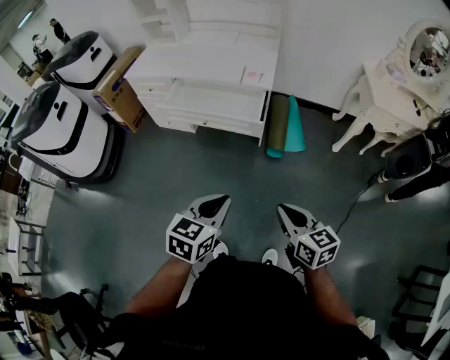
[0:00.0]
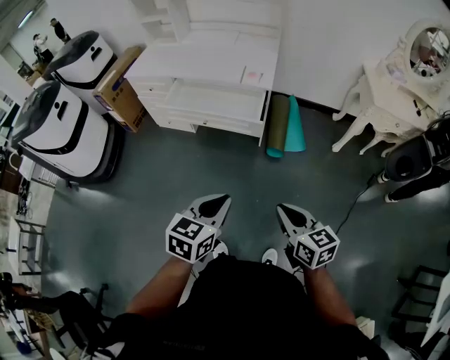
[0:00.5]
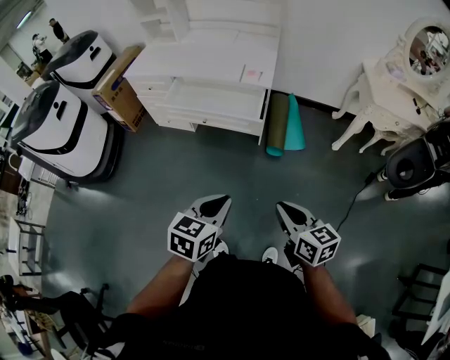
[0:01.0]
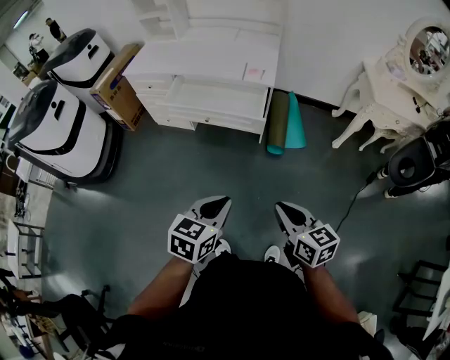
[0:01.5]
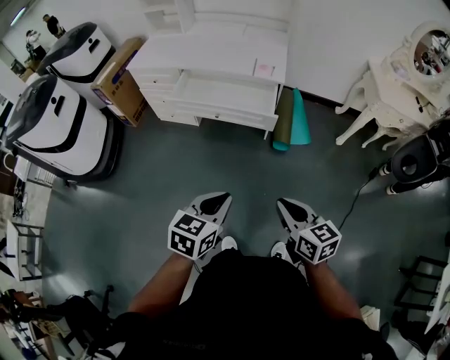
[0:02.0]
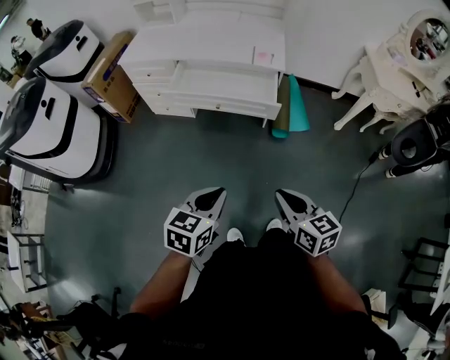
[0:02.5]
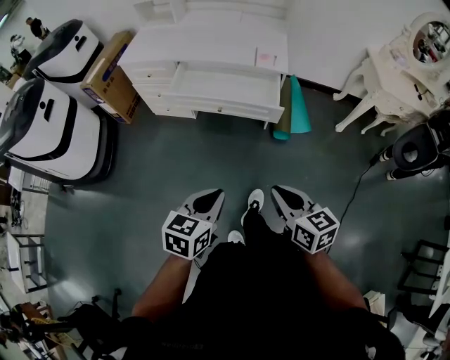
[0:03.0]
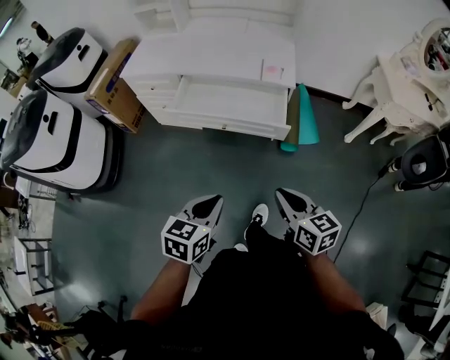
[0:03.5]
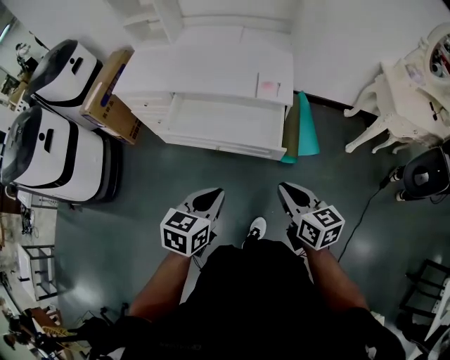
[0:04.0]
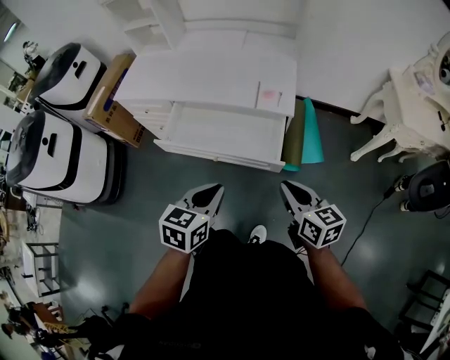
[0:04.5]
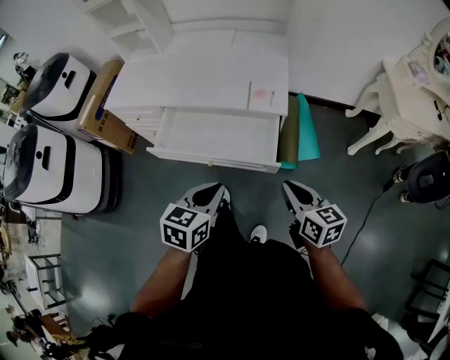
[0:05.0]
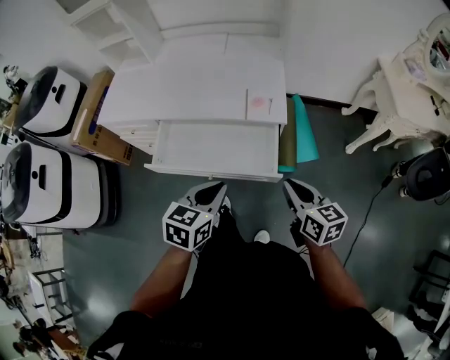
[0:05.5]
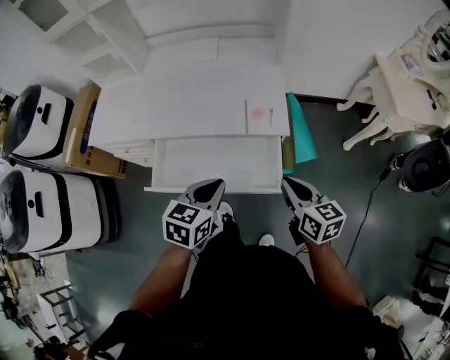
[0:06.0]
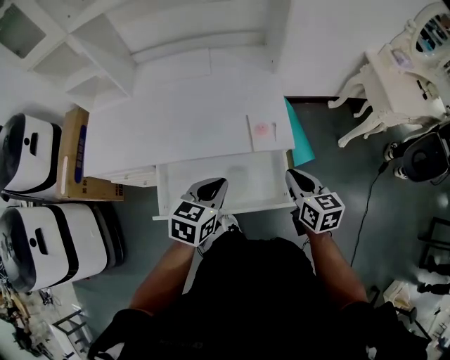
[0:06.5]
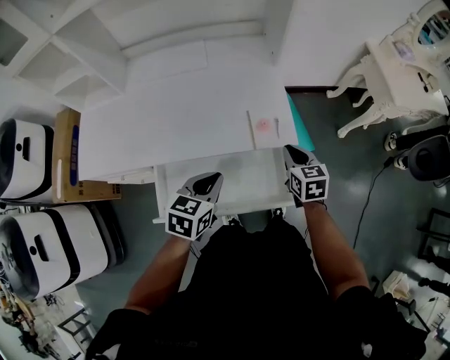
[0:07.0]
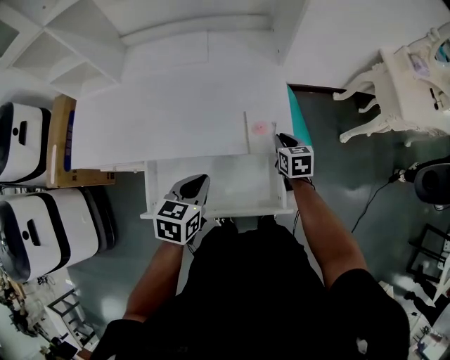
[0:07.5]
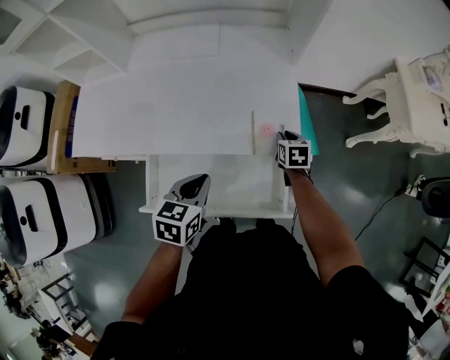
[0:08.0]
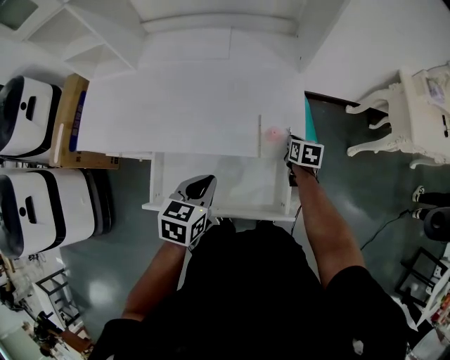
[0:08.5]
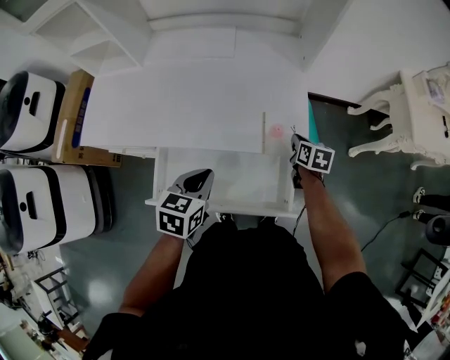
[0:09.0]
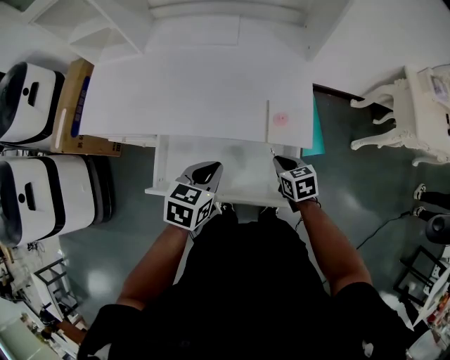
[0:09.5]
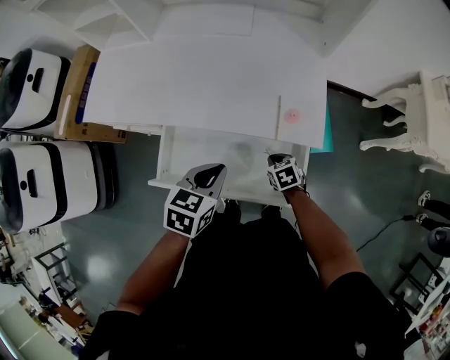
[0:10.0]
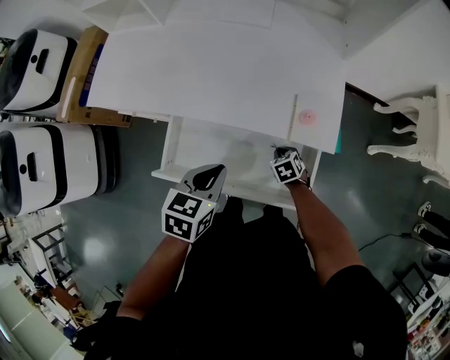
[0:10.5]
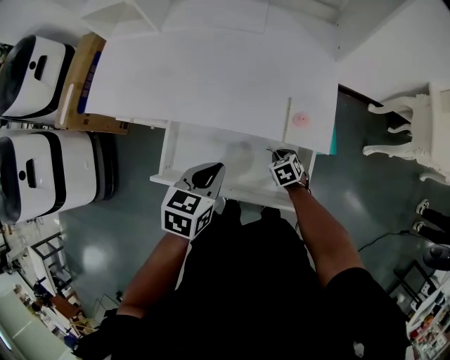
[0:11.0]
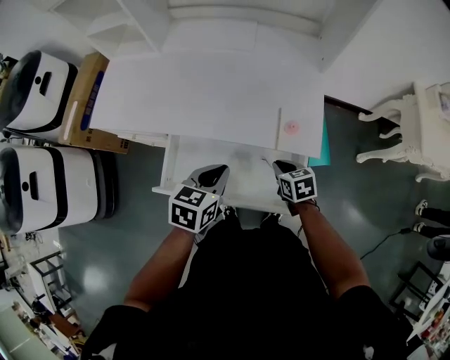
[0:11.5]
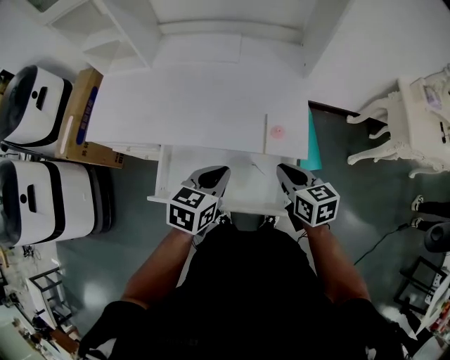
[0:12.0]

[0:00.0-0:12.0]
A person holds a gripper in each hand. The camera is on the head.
0:00.0 to 0:02.0: The grippers both shift to the left by roughly 10 cm.
0:02.0 to 0:04.0: Both grippers travel together forward, approximately 25 cm.
0:04.0 to 0:06.0: Both grippers move forward, about 25 cm.
0:06.0 to 0:08.0: The right gripper heads forward and downward, covering some 35 cm, and changes its angle by about 30 degrees. The left gripper goes some 15 cm forward, to the left and downward.
0:08.0 to 0:10.0: The right gripper shifts about 20 cm backward, to the left and downward, and changes its angle by about 30 degrees.
0:10.0 to 0:12.0: The right gripper travels upward by about 25 cm, and swivels some 30 degrees.

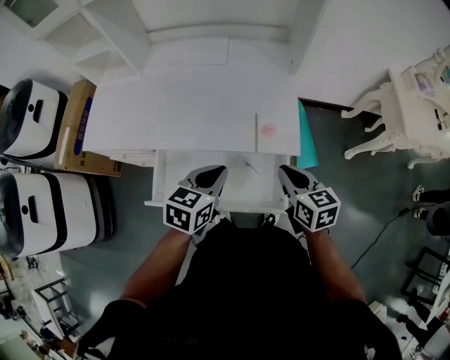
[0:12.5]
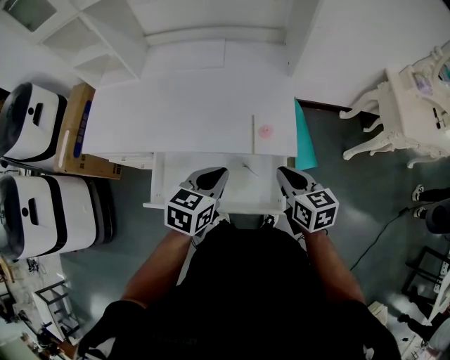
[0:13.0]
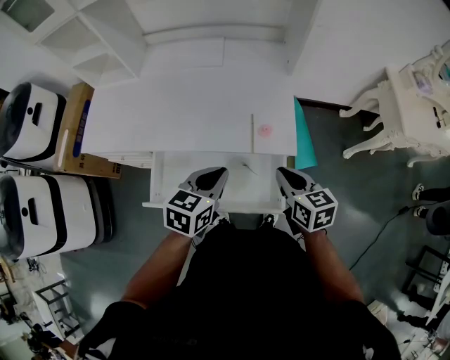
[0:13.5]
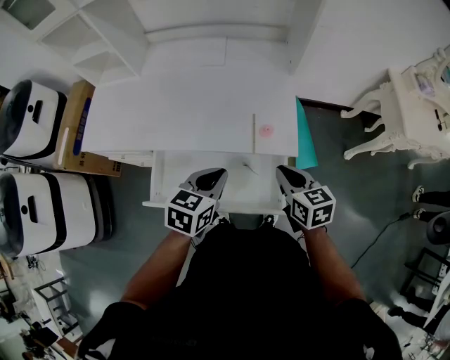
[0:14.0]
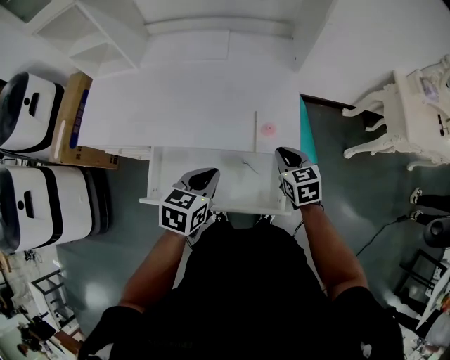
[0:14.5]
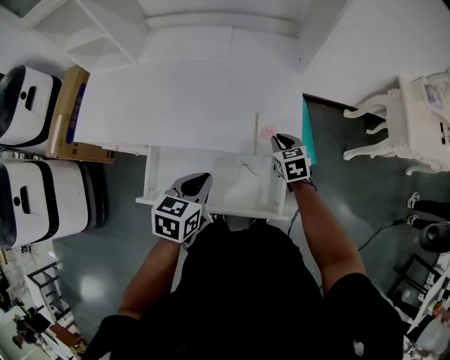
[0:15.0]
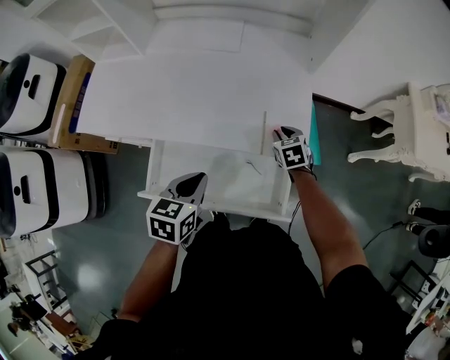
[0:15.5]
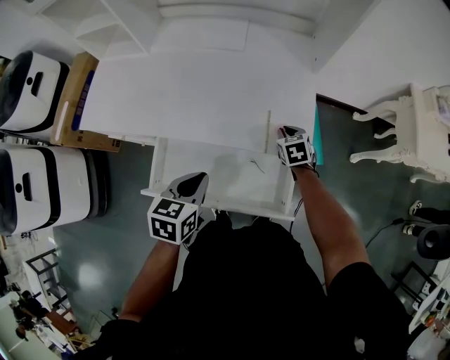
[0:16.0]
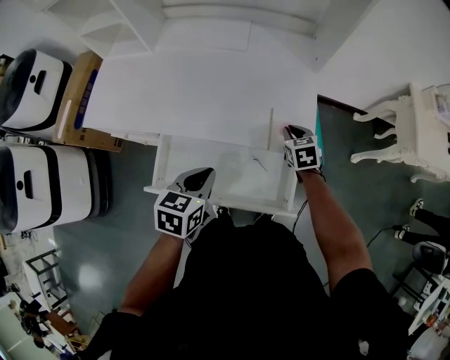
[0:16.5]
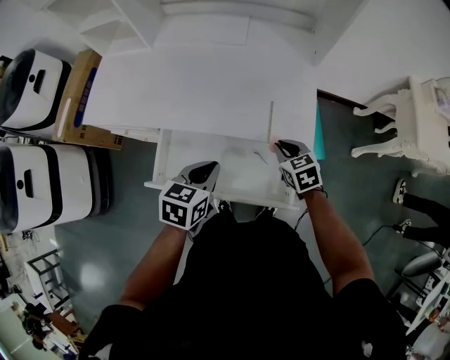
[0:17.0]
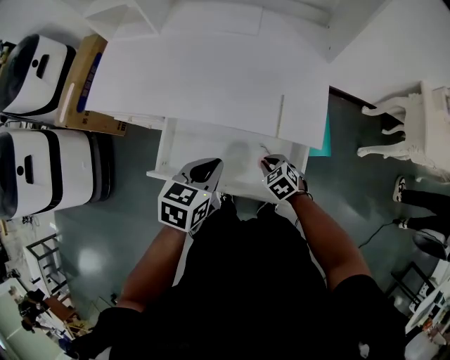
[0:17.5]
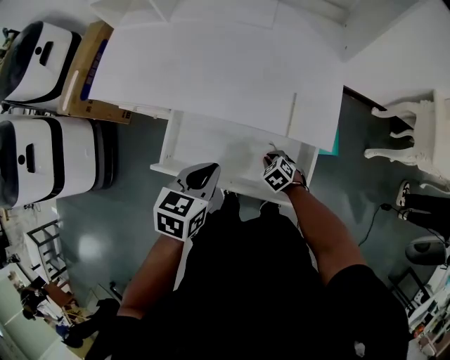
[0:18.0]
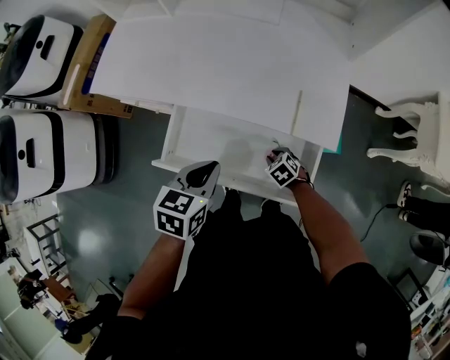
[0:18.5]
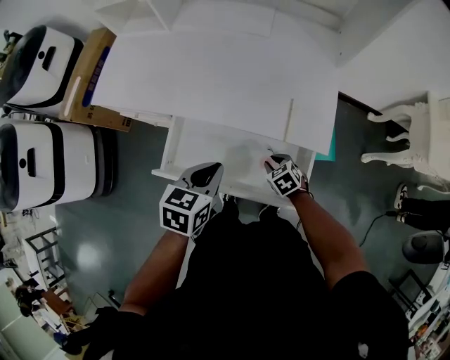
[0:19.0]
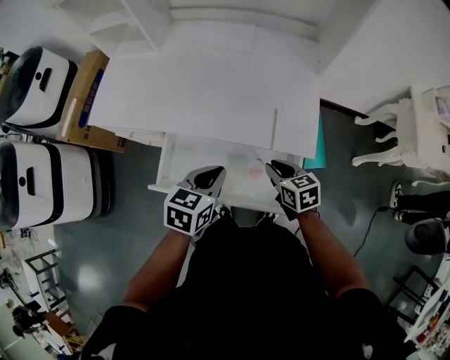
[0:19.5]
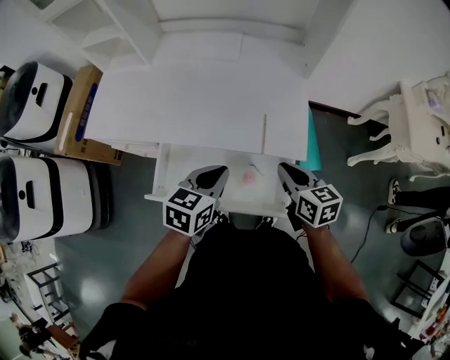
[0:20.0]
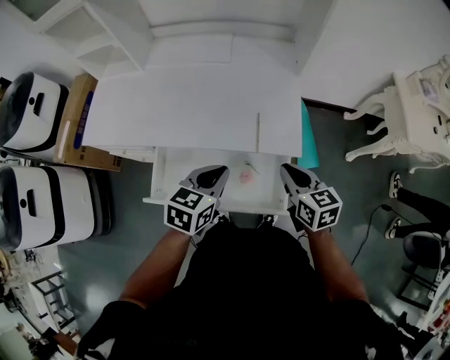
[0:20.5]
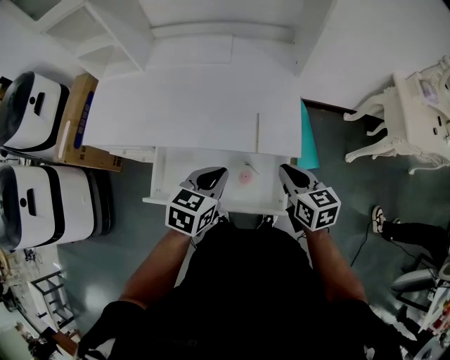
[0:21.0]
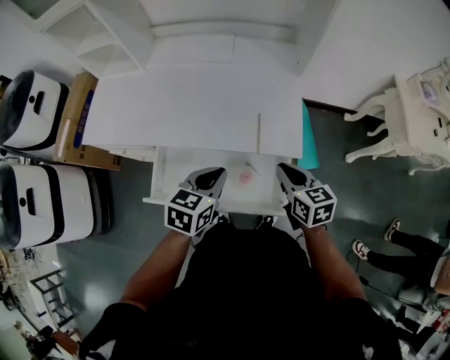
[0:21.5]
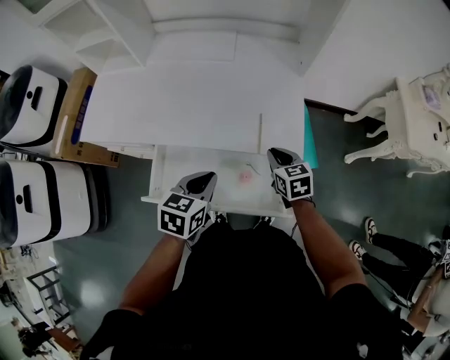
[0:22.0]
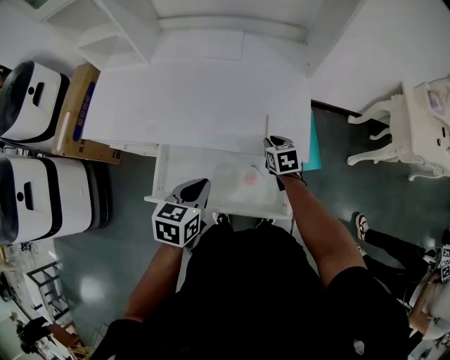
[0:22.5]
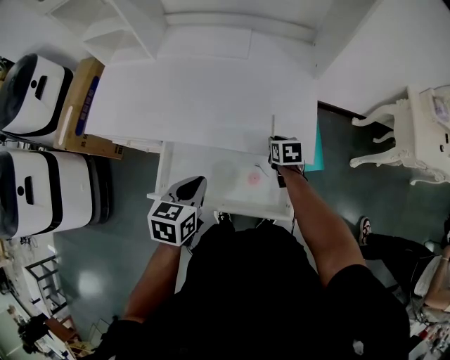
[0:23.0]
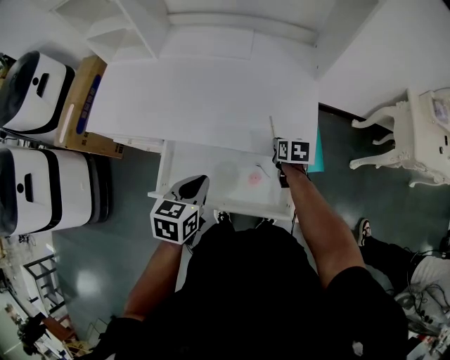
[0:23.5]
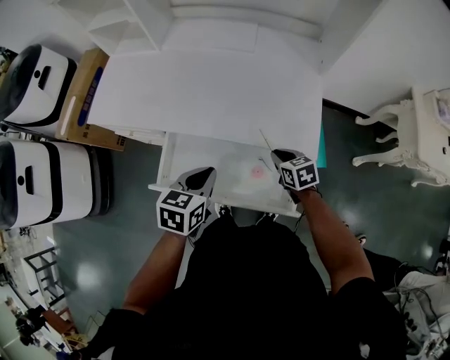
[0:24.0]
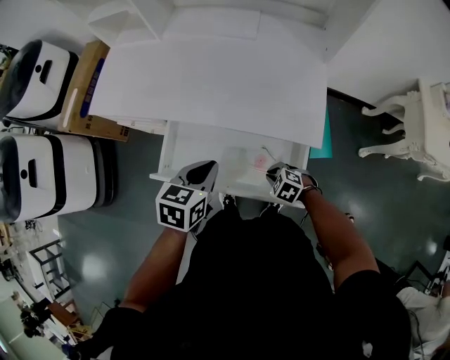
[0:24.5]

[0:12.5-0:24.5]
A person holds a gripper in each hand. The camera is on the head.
0:12.5 to 0:14.5: The right gripper travels forward and downward by about 10 cm.
0:14.5 to 0:16.5: The right gripper goes about 10 cm forward and downward.
0:16.5 to 0:18.5: The right gripper heads downward, backward and to the left, covering some 25 cm, and swivels approximately 40 degrees.
0:18.5 to 0:20.5: The right gripper moves upward, approximately 30 cm, and points its fingers about 40 degrees further upward. The left gripper is displaced to the right by roughly 10 cm.
0:20.5 to 0:22.5: The left gripper moves to the left, some 5 cm. Meanwhile the right gripper goes approximately 20 cm downward and forward, and rotates approximately 20 degrees.
0:22.5 to 0:24.5: The right gripper changes place by roughly 20 cm, and twists approximately 50 degrees counterclockwise, seen from behind.

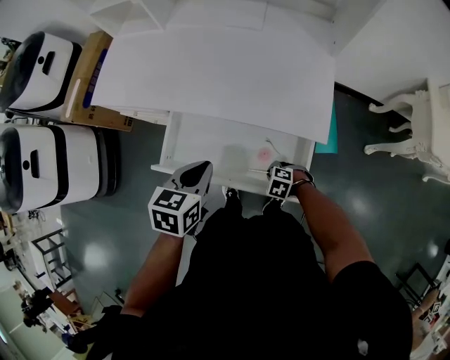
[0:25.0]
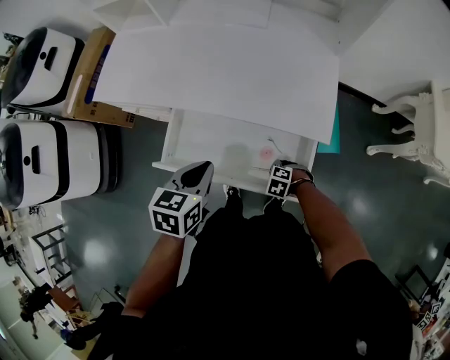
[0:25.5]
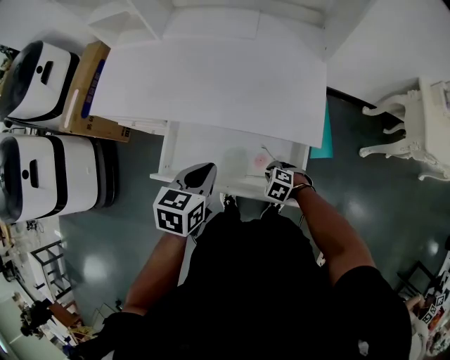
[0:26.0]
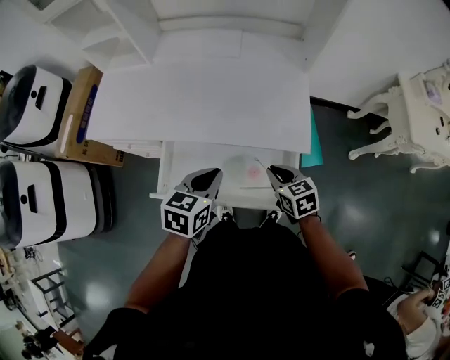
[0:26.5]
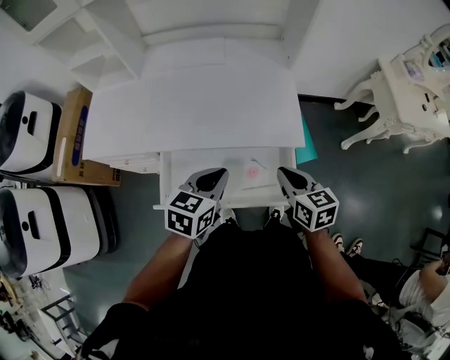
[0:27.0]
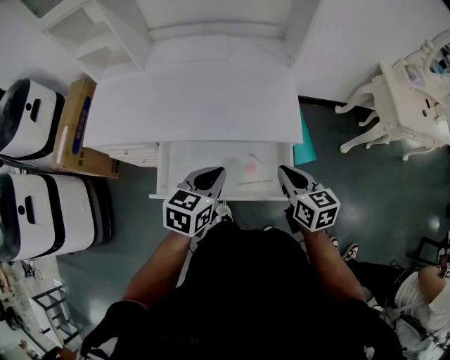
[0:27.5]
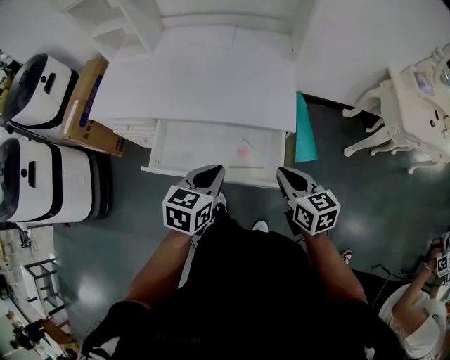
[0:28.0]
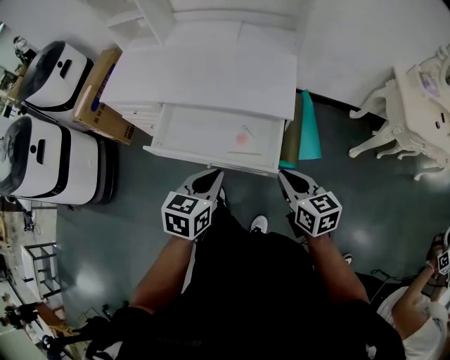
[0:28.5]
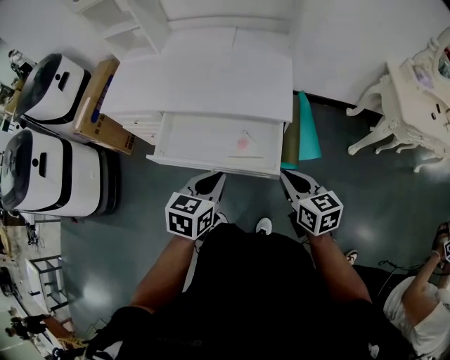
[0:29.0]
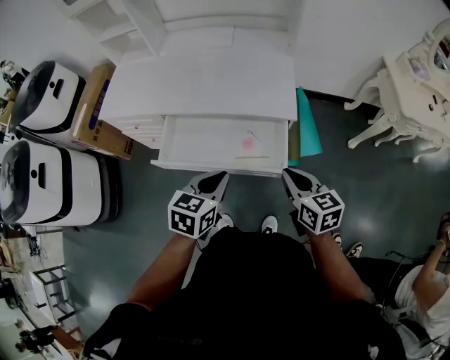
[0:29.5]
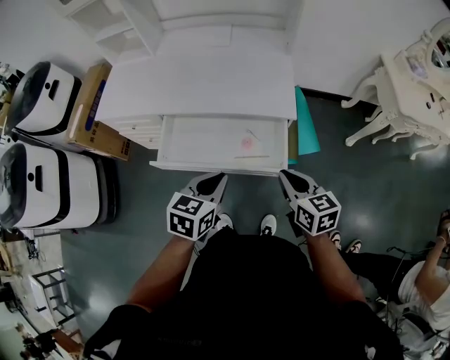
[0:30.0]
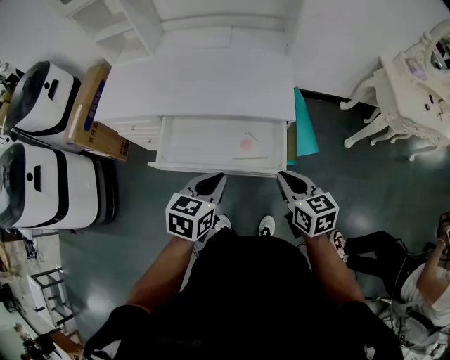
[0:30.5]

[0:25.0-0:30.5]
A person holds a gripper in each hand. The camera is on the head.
0:25.0 to 0:27.0: The left gripper shifts by roughly 5 cm, and turns by about 20 degrees, while the right gripper travels upward by some 30 cm, and points its fingers some 40 degrees further upward.
0:27.0 to 0:28.5: The grippers both shift backward and to the right by approximately 20 cm.
0:28.5 to 0:30.5: The right gripper heads to the left, covering roughly 5 cm.
